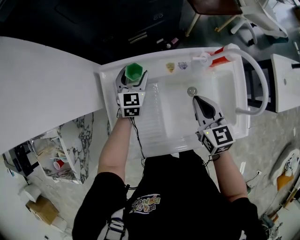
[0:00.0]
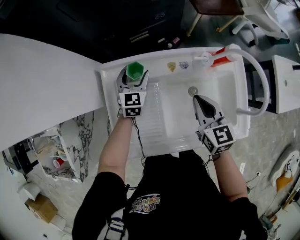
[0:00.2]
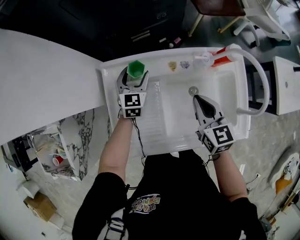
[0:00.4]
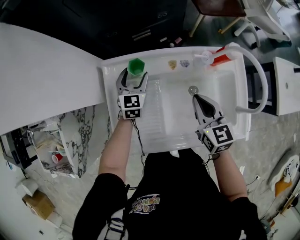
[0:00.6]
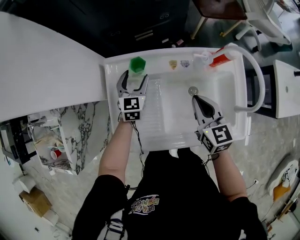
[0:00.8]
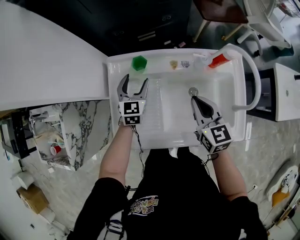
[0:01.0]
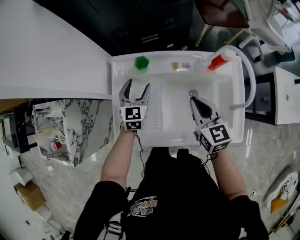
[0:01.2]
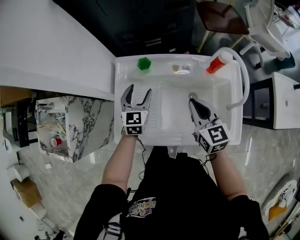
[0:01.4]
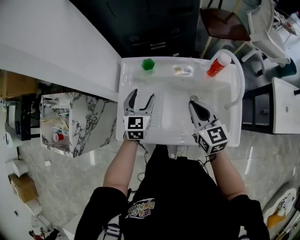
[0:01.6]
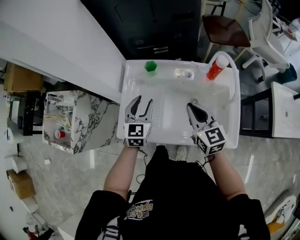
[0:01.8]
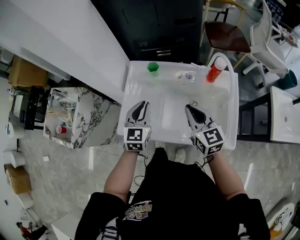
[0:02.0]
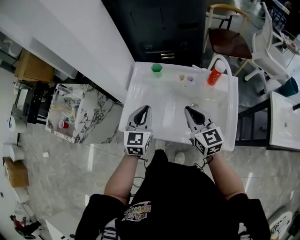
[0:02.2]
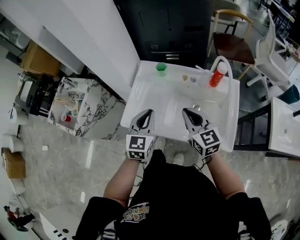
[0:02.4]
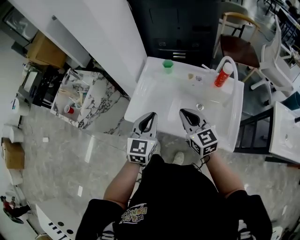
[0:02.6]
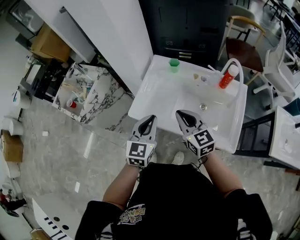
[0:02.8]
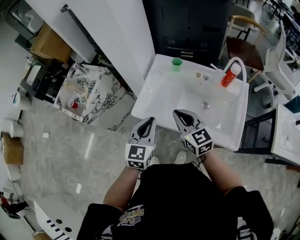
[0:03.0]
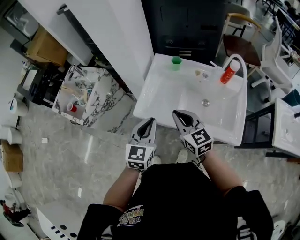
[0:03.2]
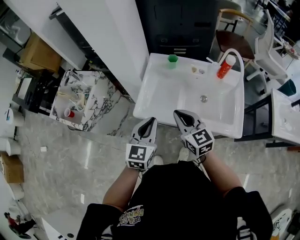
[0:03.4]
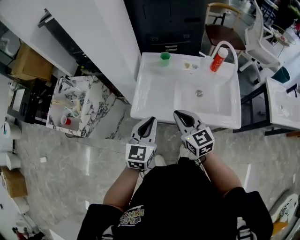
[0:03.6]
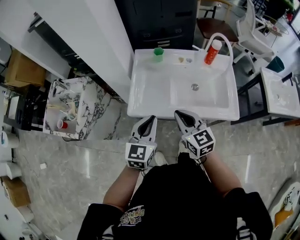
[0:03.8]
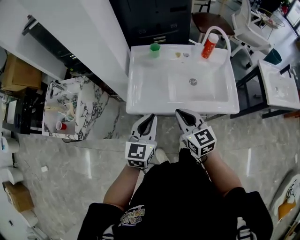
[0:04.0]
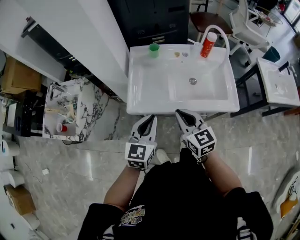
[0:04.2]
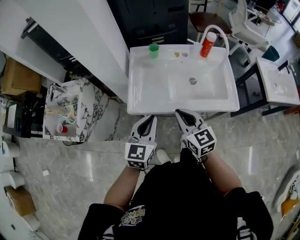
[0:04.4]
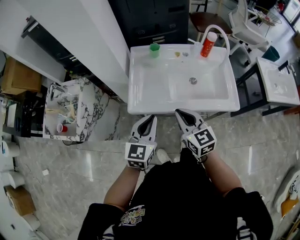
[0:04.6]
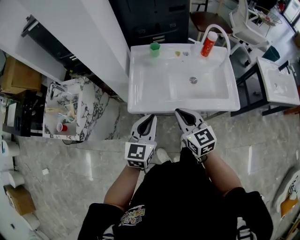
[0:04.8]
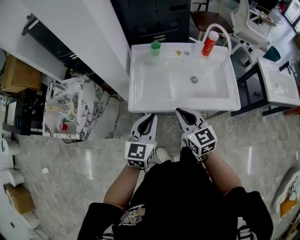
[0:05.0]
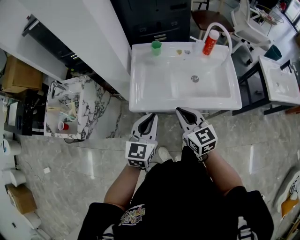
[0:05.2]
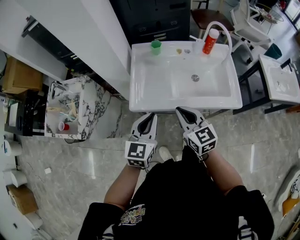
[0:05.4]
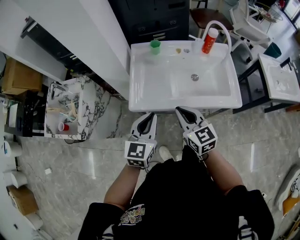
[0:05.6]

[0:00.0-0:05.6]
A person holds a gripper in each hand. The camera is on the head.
0:00.0 to 0:01.4: The left gripper moves backward and upward, about 15 cm. Meanwhile the right gripper moves about 5 cm.
0:01.4 to 0:02.8: The right gripper heads backward, to the left and upward, covering about 20 cm, and turns by roughly 30 degrees, while the left gripper goes approximately 30 cm backward and upward, and closes.
0:02.8 to 0:04.2: The left gripper changes place by roughly 5 cm, and changes its angle by about 20 degrees; the right gripper travels backward by some 10 cm, and rotates approximately 20 degrees.
0:04.2 to 0:05.6: Neither gripper changes place.

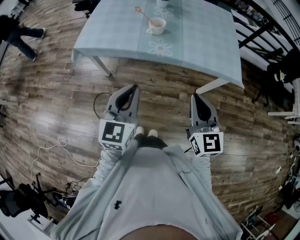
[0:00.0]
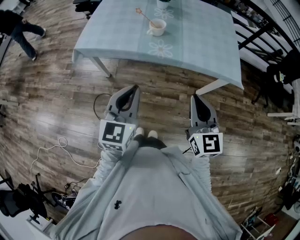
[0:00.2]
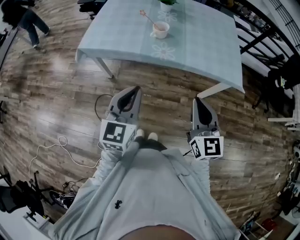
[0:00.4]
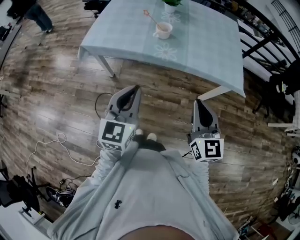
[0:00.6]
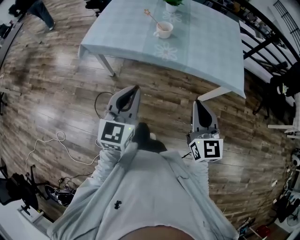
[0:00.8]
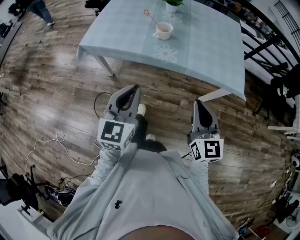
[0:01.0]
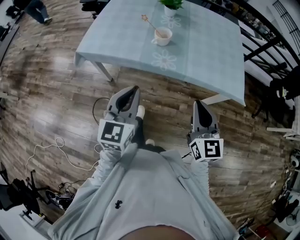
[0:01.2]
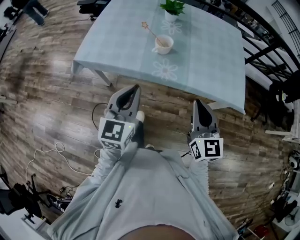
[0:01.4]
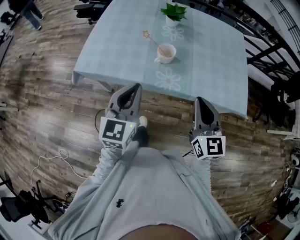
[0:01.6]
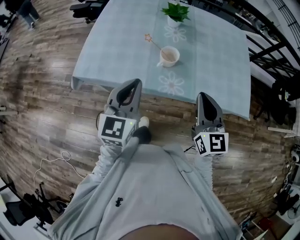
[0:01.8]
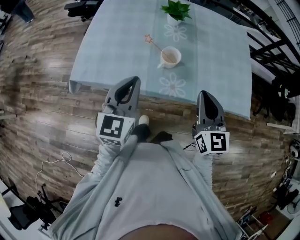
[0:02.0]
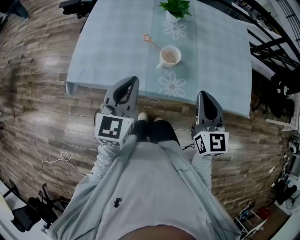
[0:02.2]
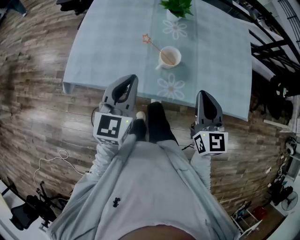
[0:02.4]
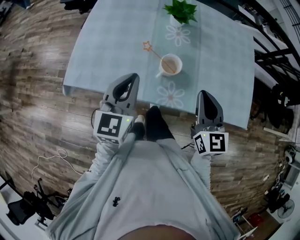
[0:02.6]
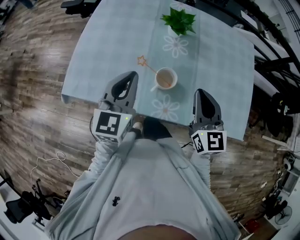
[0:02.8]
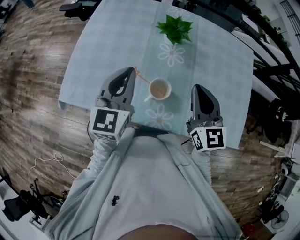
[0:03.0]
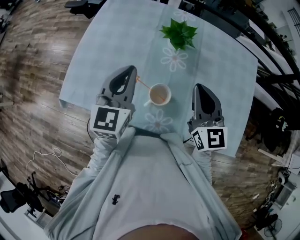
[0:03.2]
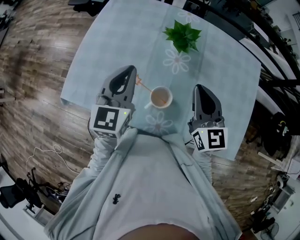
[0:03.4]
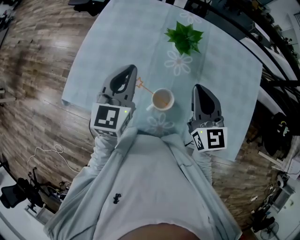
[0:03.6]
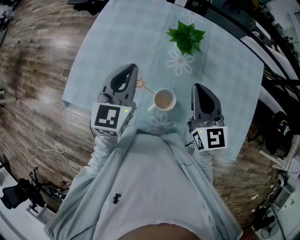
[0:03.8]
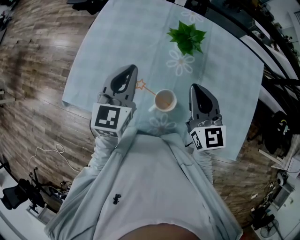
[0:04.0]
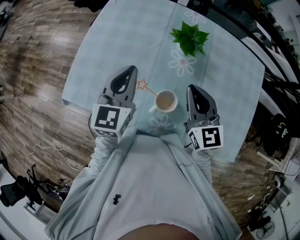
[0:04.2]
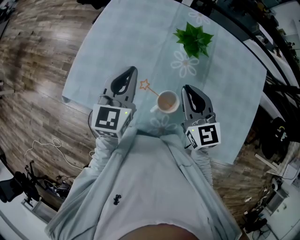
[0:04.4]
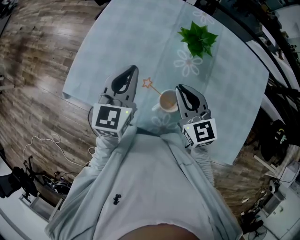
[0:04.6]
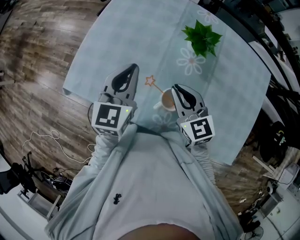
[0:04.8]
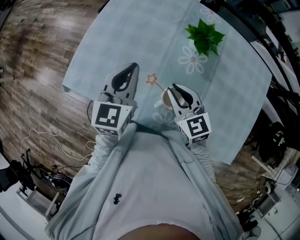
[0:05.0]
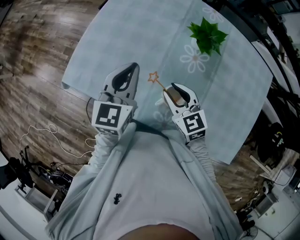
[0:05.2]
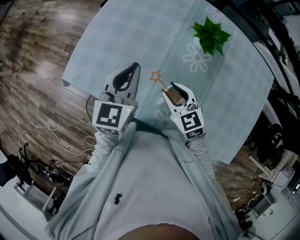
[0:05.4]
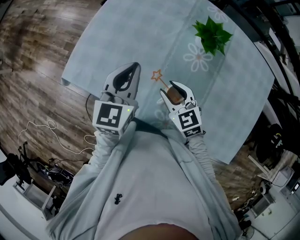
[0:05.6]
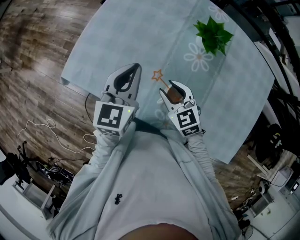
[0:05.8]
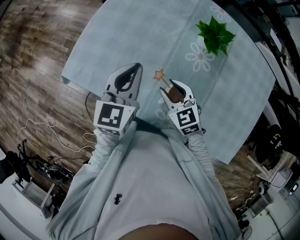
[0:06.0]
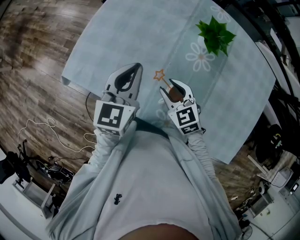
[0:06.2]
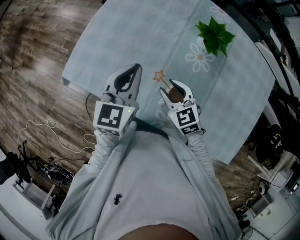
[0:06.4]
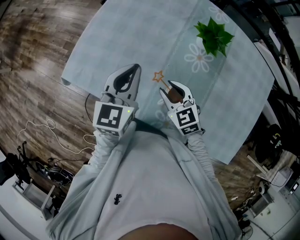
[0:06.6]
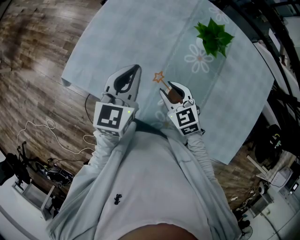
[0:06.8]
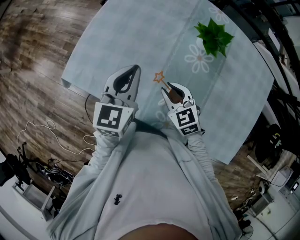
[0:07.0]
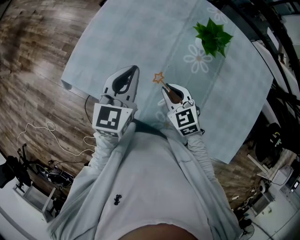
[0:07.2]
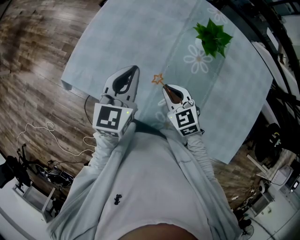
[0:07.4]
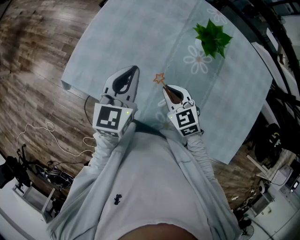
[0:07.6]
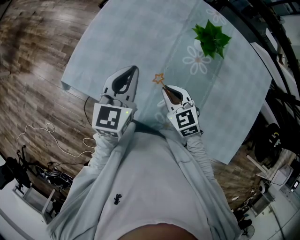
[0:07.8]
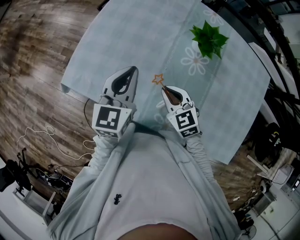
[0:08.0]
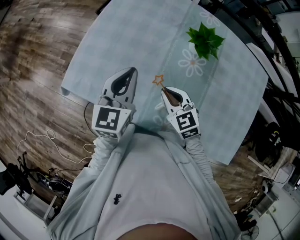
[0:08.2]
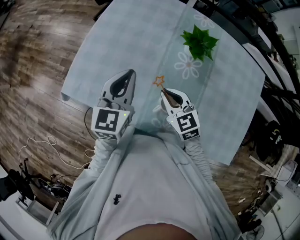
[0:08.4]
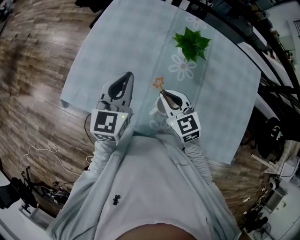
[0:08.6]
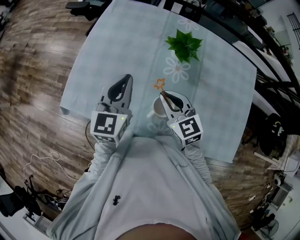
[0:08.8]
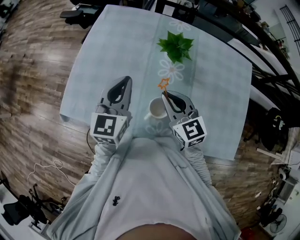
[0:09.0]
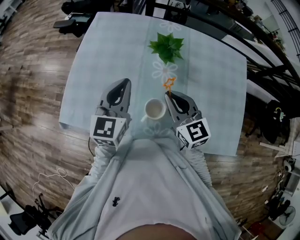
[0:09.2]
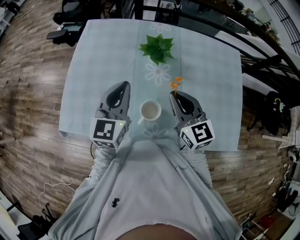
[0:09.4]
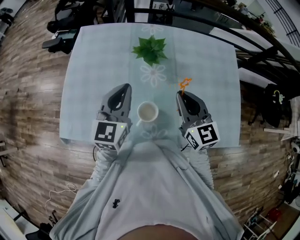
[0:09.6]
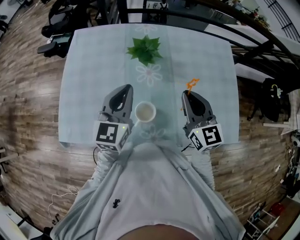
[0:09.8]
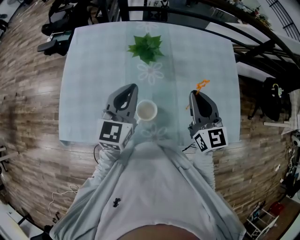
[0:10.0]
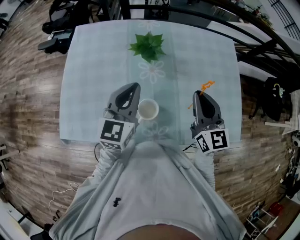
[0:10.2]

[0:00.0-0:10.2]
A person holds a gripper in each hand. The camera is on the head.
0:00.0 to 0:01.4: The grippers both shift forward by about 15 cm.
0:01.4 to 0:03.0: The two grippers go about 35 cm forward.
0:03.0 to 0:04.4: The right gripper shifts approximately 10 cm forward and to the left; the left gripper is displaced forward by approximately 5 cm.
0:04.4 to 0:05.8: The right gripper heads downward and to the left, covering approximately 15 cm, swivels some 30 degrees, and opens. Meanwhile the left gripper shifts by some 5 cm.
0:05.8 to 0:07.2: The right gripper closes its fingers.
0:07.2 to 0:08.8: The right gripper is displaced upward by some 10 cm, while the left gripper shifts approximately 5 cm upward.
0:08.8 to 0:10.2: The left gripper ends up about 15 cm from where it was, and swivels some 20 degrees. Meanwhile the right gripper shifts by about 20 cm, and rotates roughly 40 degrees.

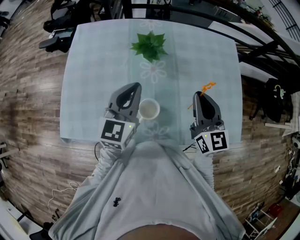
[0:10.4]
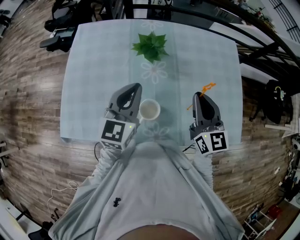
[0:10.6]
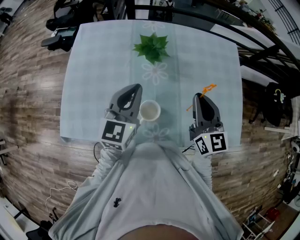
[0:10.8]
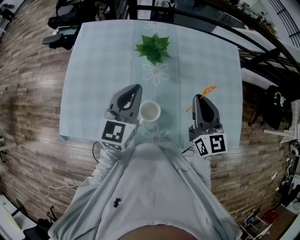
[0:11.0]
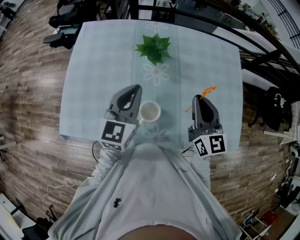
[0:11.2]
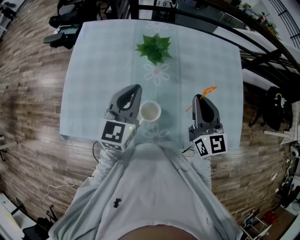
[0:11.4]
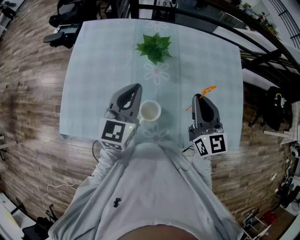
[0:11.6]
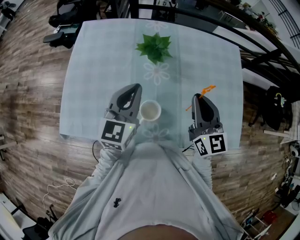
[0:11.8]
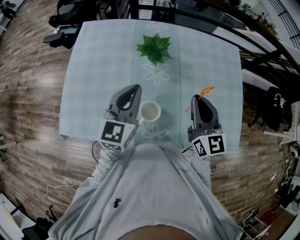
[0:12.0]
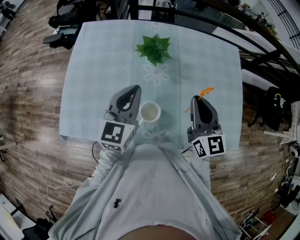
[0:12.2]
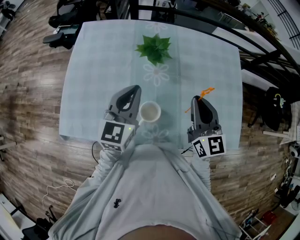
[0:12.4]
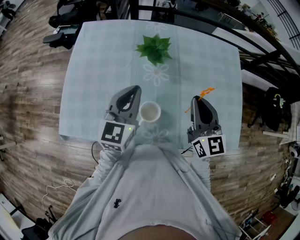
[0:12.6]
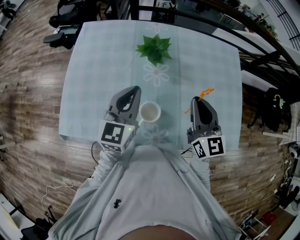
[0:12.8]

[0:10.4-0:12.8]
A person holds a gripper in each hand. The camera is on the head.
0:10.4 to 0:11.6: Both grippers stay put.
0:11.6 to 0:12.8: Neither gripper changes place.

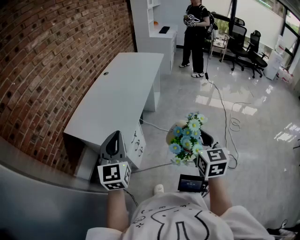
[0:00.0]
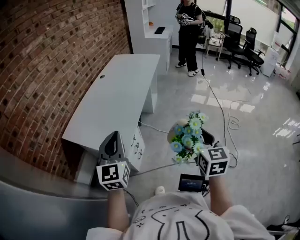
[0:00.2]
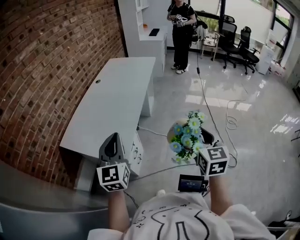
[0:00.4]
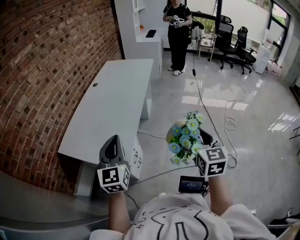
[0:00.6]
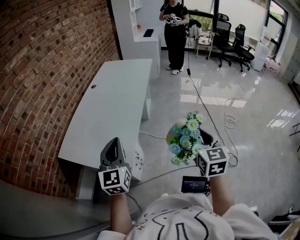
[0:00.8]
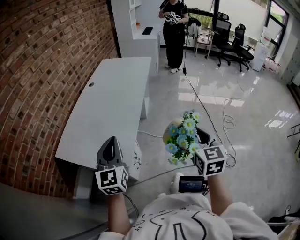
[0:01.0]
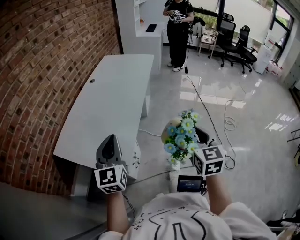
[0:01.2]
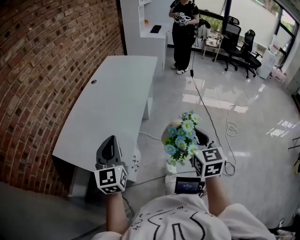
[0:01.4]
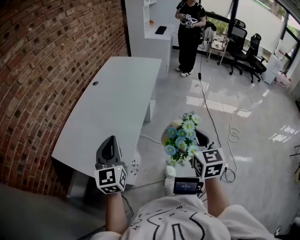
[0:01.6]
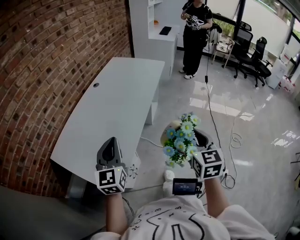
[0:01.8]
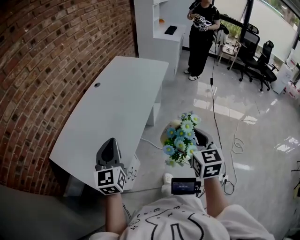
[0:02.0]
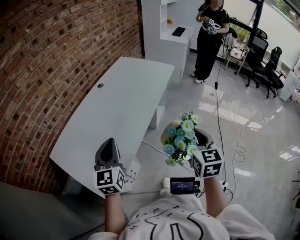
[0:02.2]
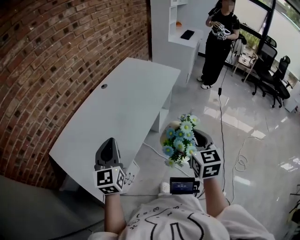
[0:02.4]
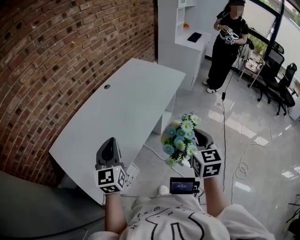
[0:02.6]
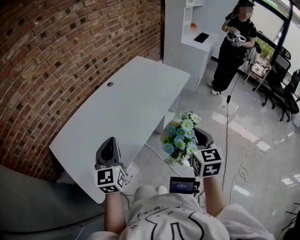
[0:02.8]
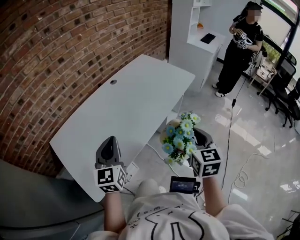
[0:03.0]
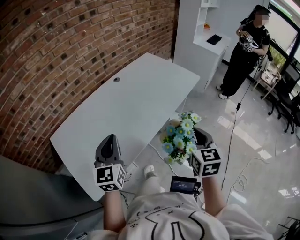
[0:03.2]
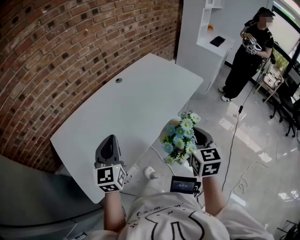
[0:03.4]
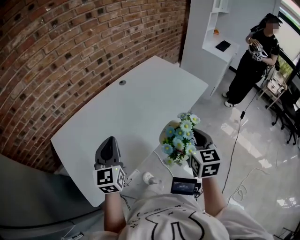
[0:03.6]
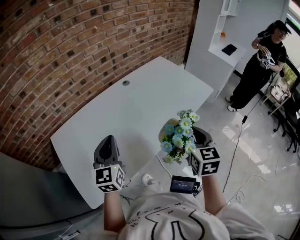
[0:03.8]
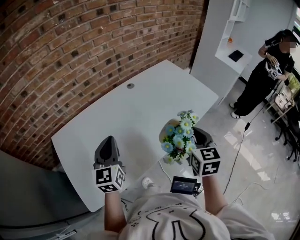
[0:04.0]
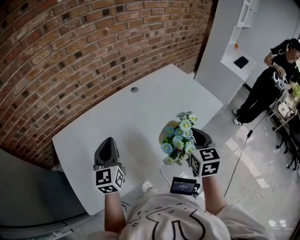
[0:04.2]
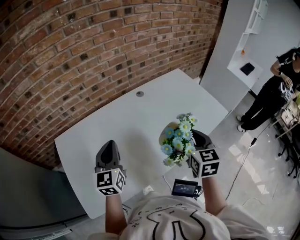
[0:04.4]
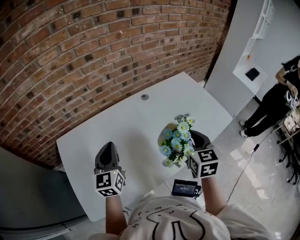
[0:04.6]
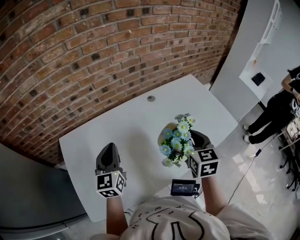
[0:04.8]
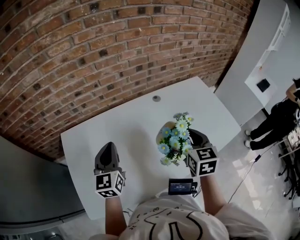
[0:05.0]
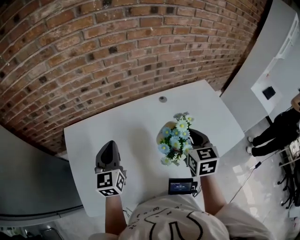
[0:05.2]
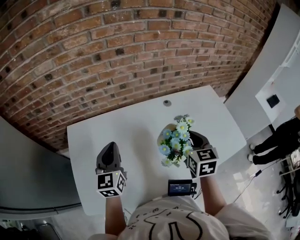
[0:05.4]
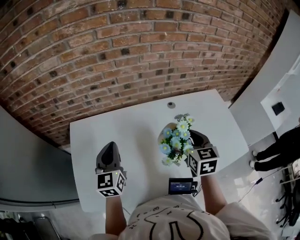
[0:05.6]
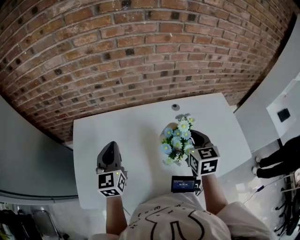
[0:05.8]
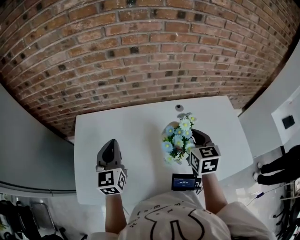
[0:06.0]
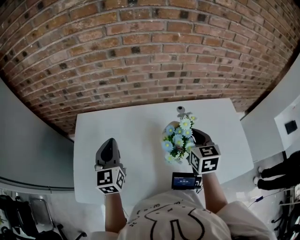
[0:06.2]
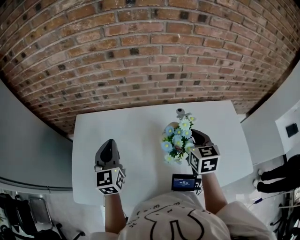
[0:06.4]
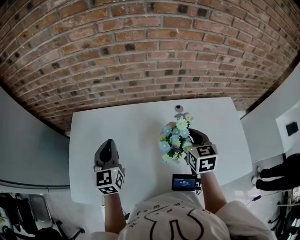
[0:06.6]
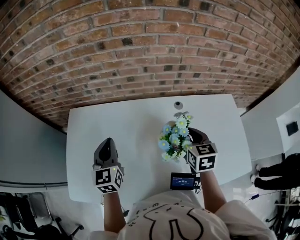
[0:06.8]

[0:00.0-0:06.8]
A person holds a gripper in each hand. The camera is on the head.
0:00.0 to 0:01.4: Both grippers travel together forward, approximately 15 cm.
0:01.4 to 0:02.8: The right gripper shifts approximately 30 cm forward, and rotates some 20 degrees; the left gripper shifts about 20 cm forward and to the right, and changes its angle by roughly 20 degrees.
0:02.8 to 0:04.0: The left gripper is displaced forward and to the left by roughly 15 cm; the right gripper is displaced forward by about 20 cm.
0:04.0 to 0:05.4: The left gripper is displaced to the left and forward by approximately 15 cm; the right gripper shifts about 25 cm forward and to the left, and swivels approximately 20 degrees.
0:05.4 to 0:06.8: The right gripper goes some 10 cm forward and downward, while the left gripper ends up roughly 5 cm from where it was.
